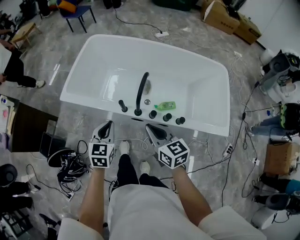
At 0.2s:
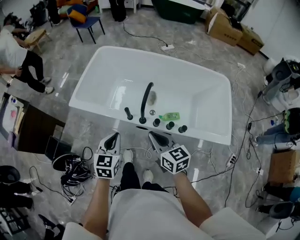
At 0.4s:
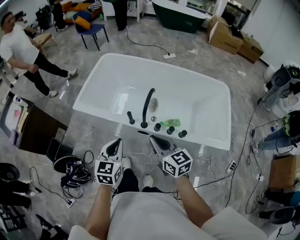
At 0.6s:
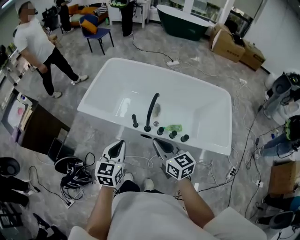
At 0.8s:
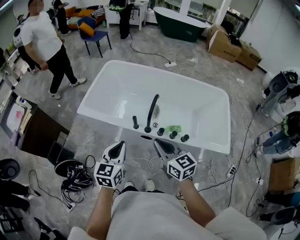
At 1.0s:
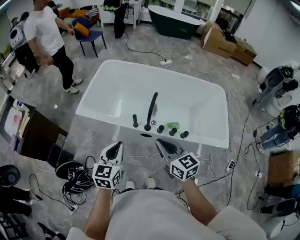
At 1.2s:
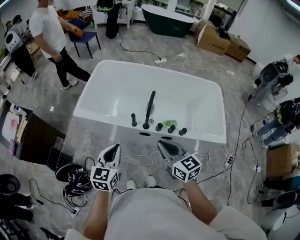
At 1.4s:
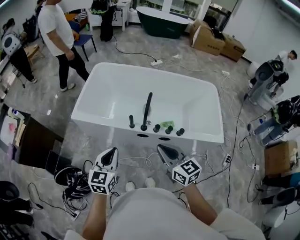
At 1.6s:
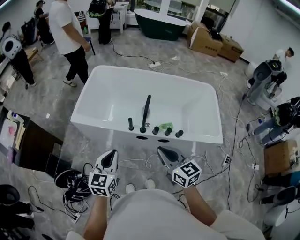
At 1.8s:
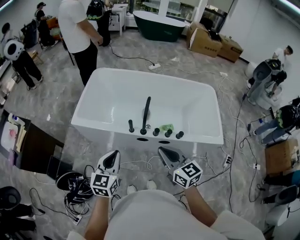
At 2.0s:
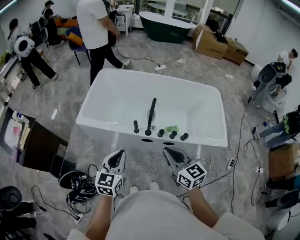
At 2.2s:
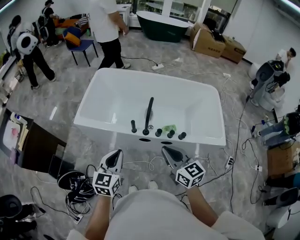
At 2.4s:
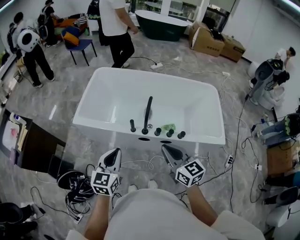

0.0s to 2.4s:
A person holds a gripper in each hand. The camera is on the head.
0.0s to 1.2s: The right gripper heads upward and backward, covering some 10 cm. The left gripper travels upward, backward and to the left by approximately 15 cm.
1.2s to 2.4s: There are only small adjustments of the grippers.

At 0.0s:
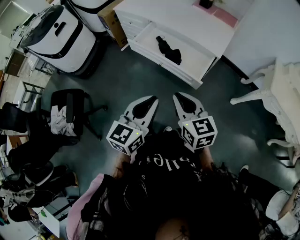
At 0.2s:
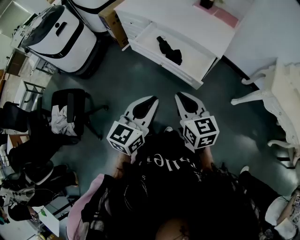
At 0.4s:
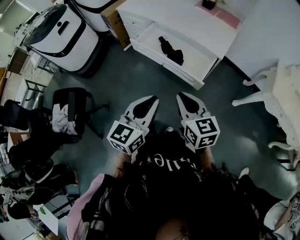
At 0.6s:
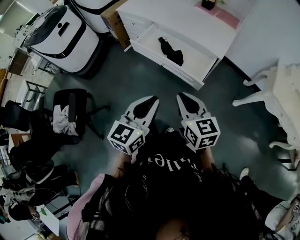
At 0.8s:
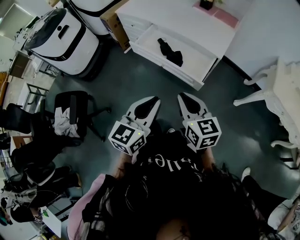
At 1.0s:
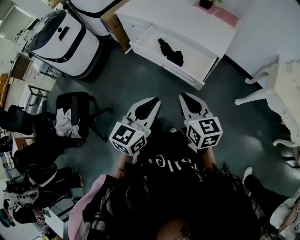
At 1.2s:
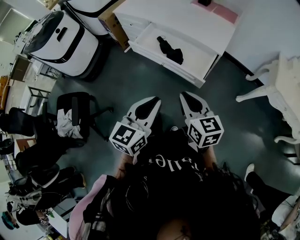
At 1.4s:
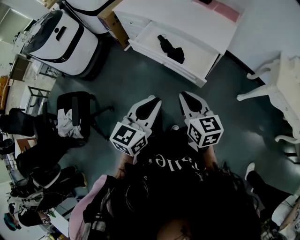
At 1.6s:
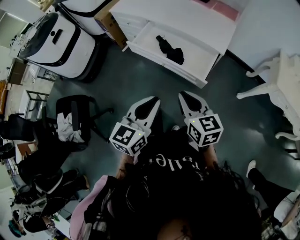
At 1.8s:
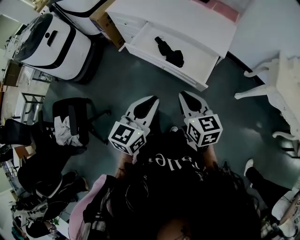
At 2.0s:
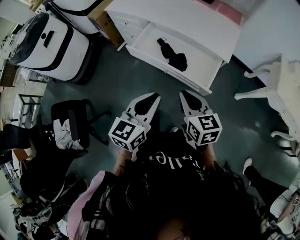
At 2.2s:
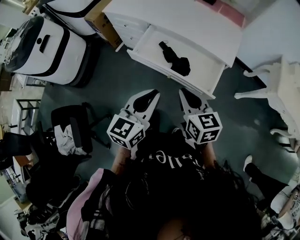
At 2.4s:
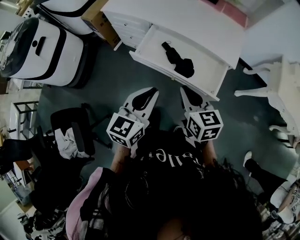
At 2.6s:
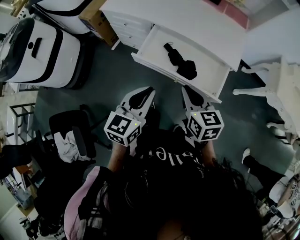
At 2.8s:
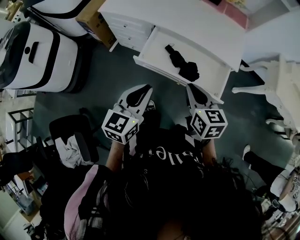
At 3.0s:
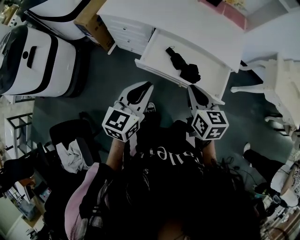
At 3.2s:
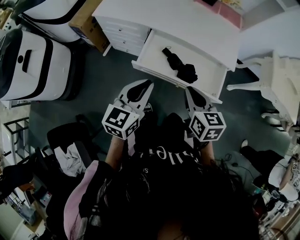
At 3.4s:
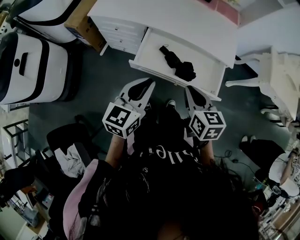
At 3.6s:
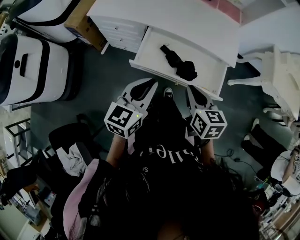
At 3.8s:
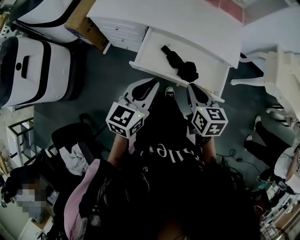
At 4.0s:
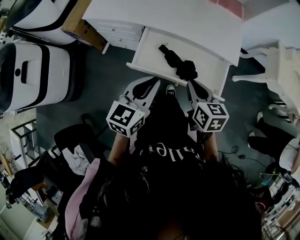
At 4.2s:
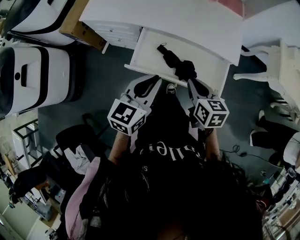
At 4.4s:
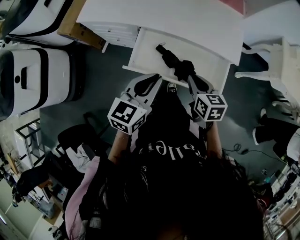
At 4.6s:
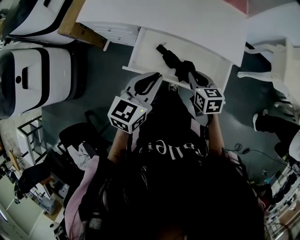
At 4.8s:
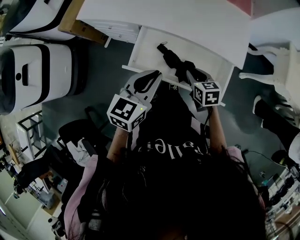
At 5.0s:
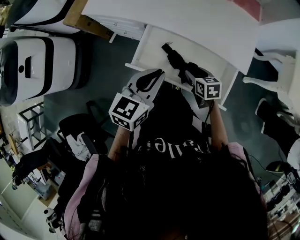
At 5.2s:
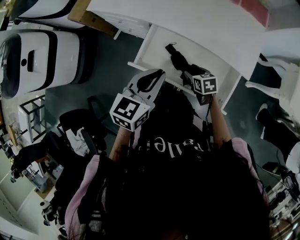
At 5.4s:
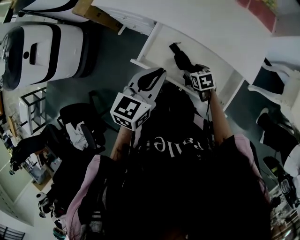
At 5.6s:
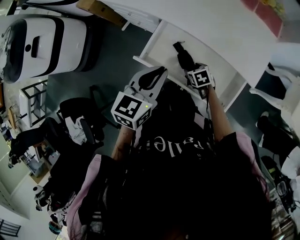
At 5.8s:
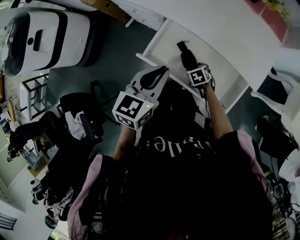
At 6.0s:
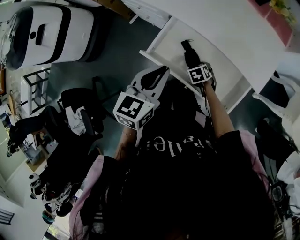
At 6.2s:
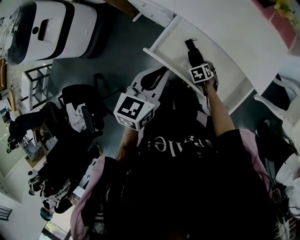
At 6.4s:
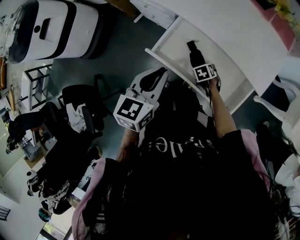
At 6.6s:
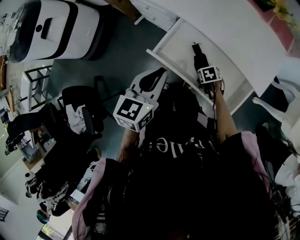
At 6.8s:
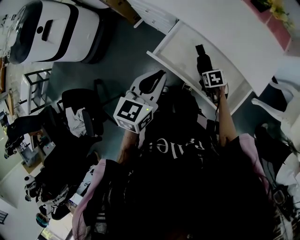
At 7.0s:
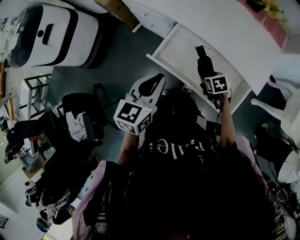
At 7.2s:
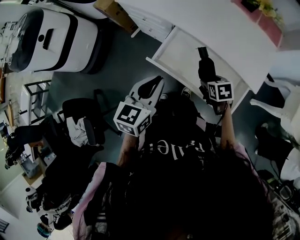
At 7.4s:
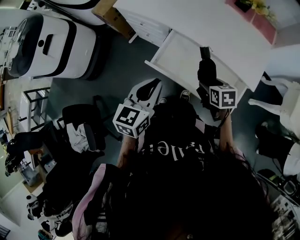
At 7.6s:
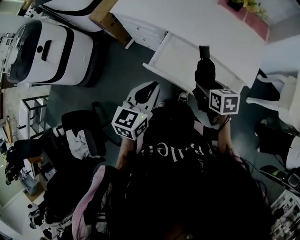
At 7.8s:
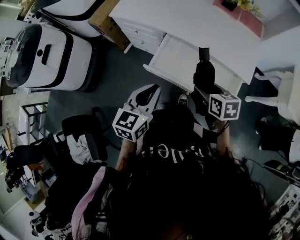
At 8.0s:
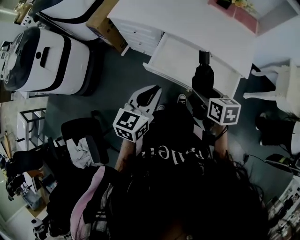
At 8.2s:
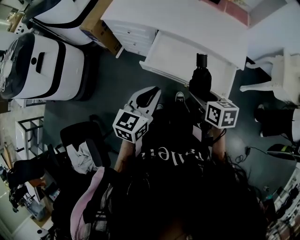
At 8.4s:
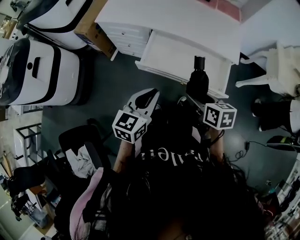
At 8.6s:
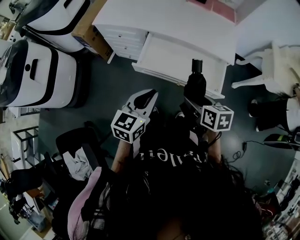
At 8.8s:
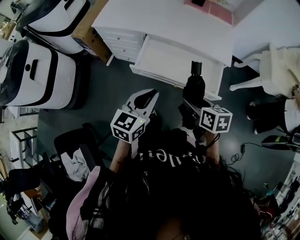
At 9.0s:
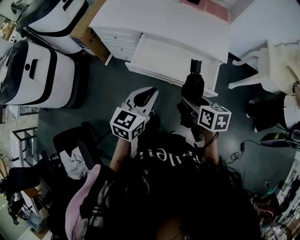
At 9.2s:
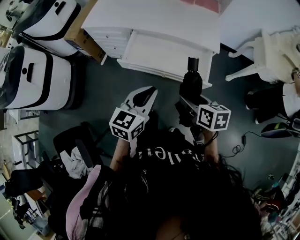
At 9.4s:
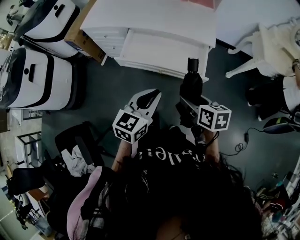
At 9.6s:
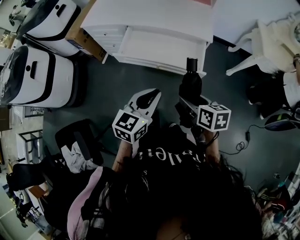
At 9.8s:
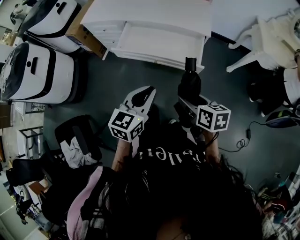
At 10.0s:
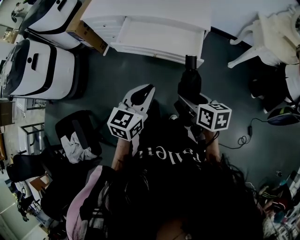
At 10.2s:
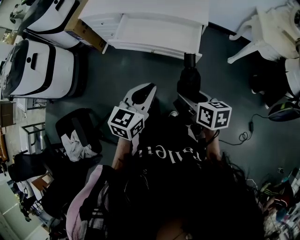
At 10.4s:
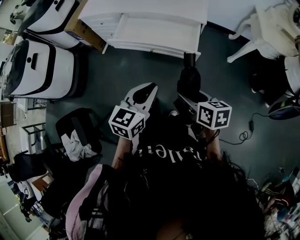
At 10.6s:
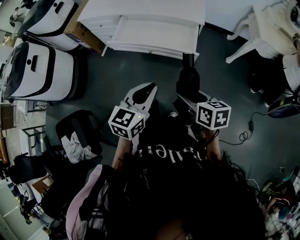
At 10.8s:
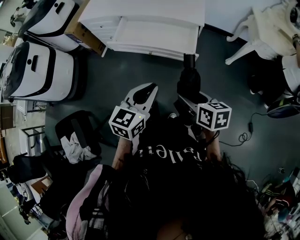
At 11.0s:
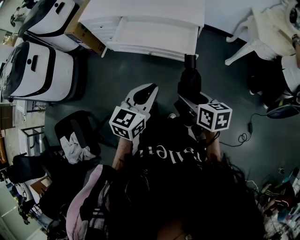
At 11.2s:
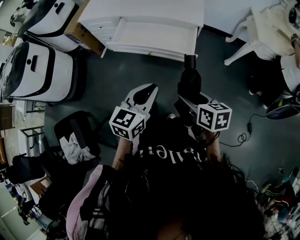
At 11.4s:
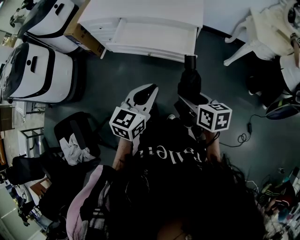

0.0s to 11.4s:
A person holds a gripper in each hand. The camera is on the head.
0.0s to 1.4s: The grippers stay close to where they were, moving slightly.
1.4s to 2.8s: Both grippers travel together forward and to the left, approximately 35 cm. The right gripper swivels some 20 degrees.
2.8s to 4.2s: The left gripper heads forward, covering approximately 10 cm. The right gripper shifts about 10 cm forward and downward.
4.2s to 5.6s: The right gripper is displaced downward by roughly 25 cm, rotates roughly 50 degrees, and opens. The left gripper changes place by approximately 10 cm.
5.6s to 7.2s: The right gripper goes approximately 10 cm upward, while the left gripper changes place by about 10 cm.
7.2s to 8.6s: The left gripper heads backward, covering about 15 cm, and turns by about 20 degrees; the right gripper travels backward and upward by approximately 25 cm, and swivels approximately 30 degrees.
8.6s to 10.0s: Both grippers travel together backward and to the right, roughly 25 cm.
10.0s to 11.4s: The right gripper shifts by about 5 cm; the left gripper moves about 5 cm.

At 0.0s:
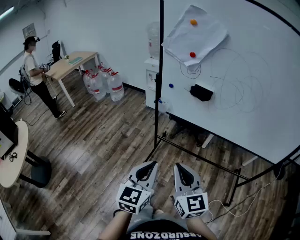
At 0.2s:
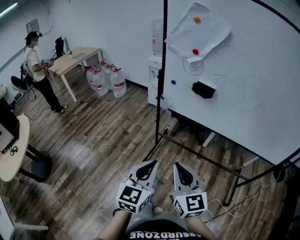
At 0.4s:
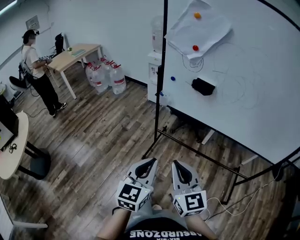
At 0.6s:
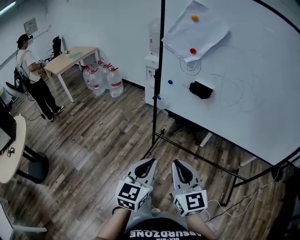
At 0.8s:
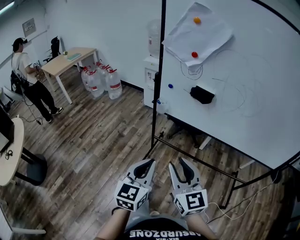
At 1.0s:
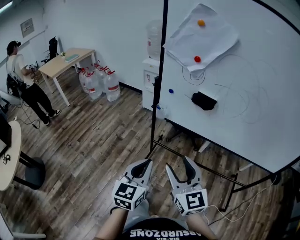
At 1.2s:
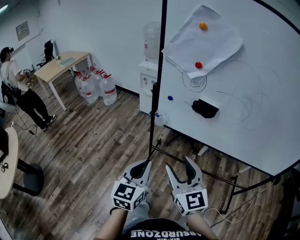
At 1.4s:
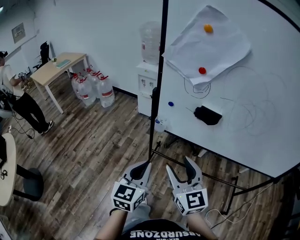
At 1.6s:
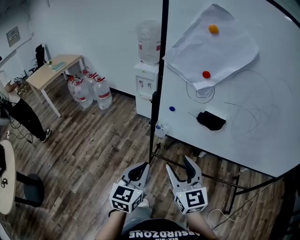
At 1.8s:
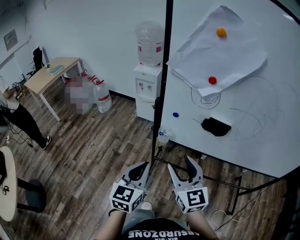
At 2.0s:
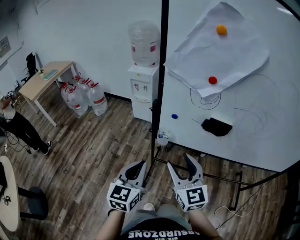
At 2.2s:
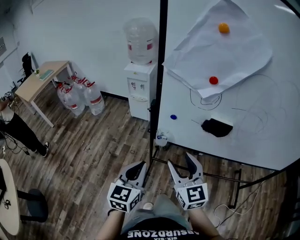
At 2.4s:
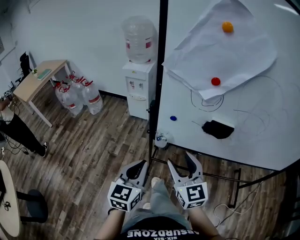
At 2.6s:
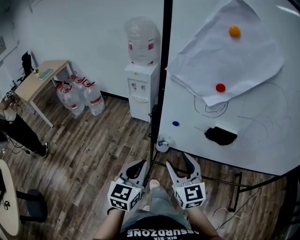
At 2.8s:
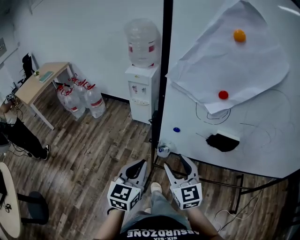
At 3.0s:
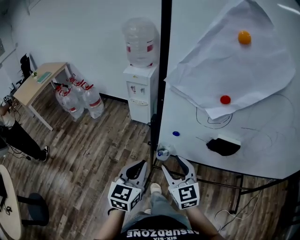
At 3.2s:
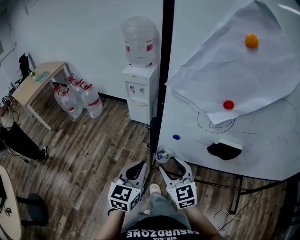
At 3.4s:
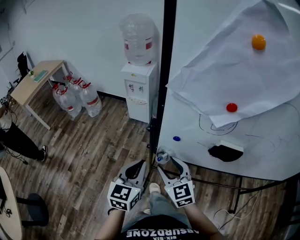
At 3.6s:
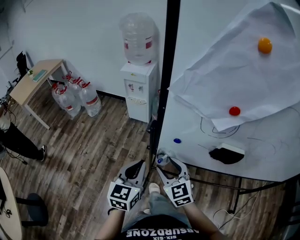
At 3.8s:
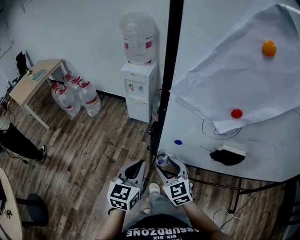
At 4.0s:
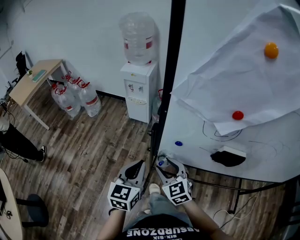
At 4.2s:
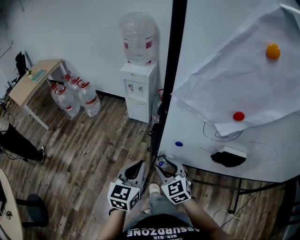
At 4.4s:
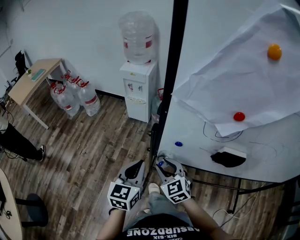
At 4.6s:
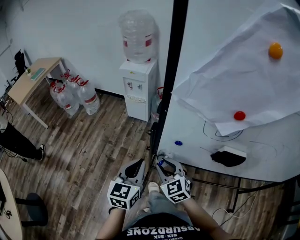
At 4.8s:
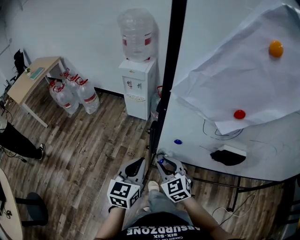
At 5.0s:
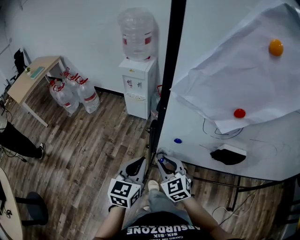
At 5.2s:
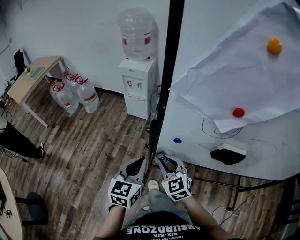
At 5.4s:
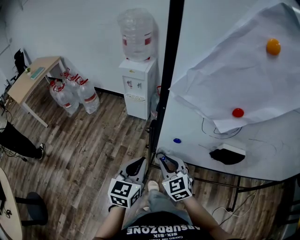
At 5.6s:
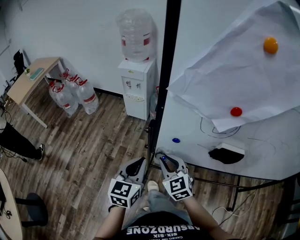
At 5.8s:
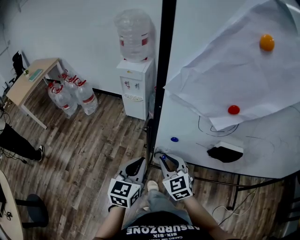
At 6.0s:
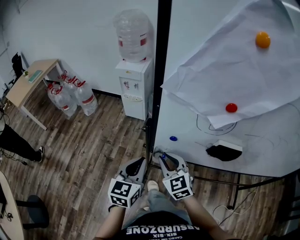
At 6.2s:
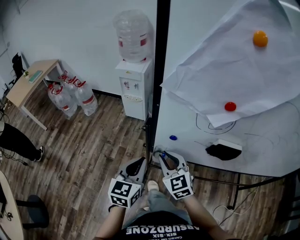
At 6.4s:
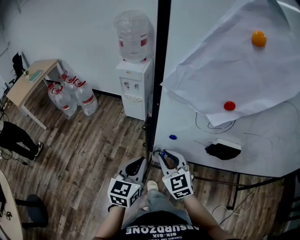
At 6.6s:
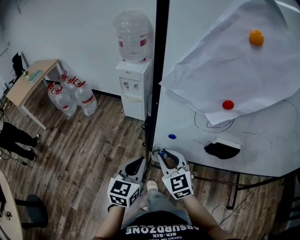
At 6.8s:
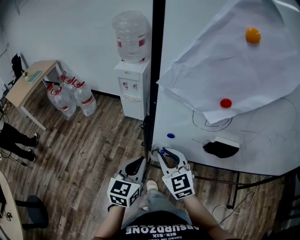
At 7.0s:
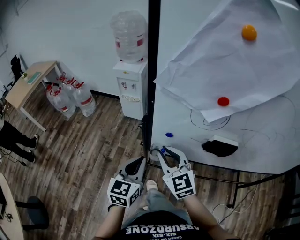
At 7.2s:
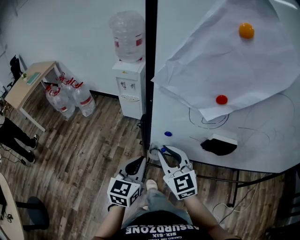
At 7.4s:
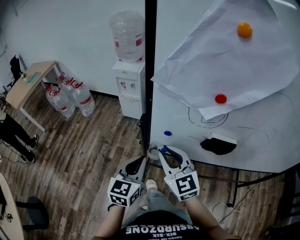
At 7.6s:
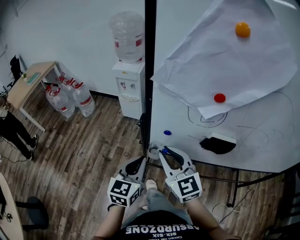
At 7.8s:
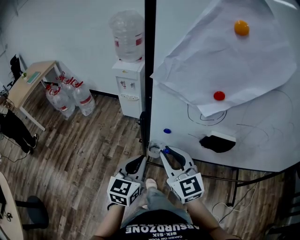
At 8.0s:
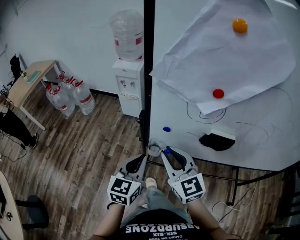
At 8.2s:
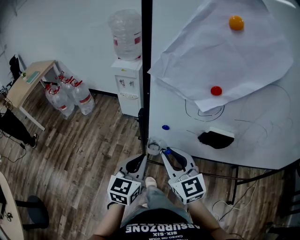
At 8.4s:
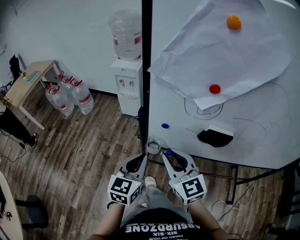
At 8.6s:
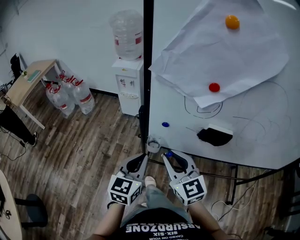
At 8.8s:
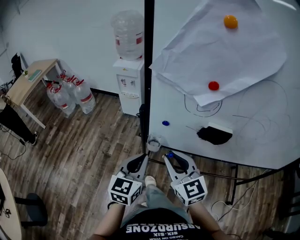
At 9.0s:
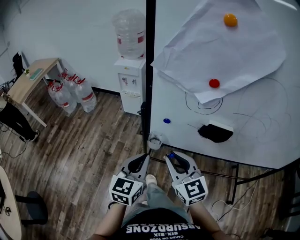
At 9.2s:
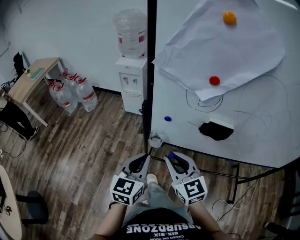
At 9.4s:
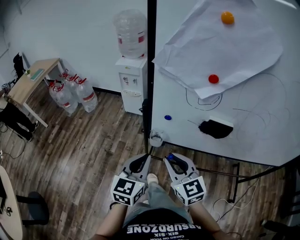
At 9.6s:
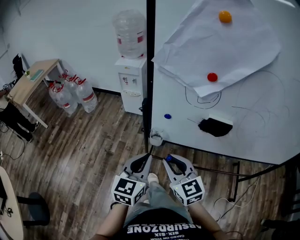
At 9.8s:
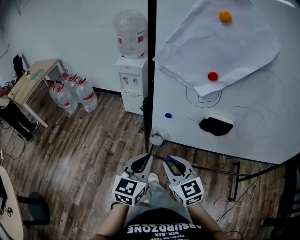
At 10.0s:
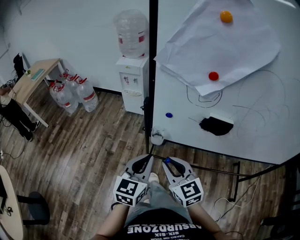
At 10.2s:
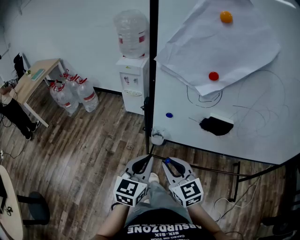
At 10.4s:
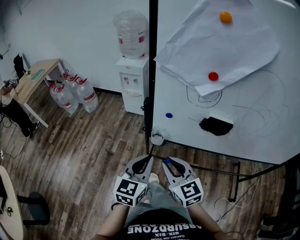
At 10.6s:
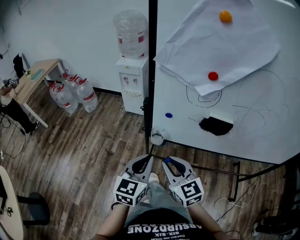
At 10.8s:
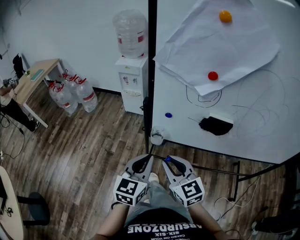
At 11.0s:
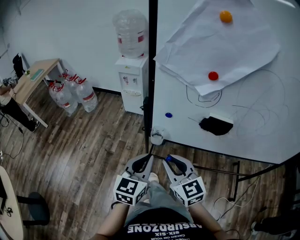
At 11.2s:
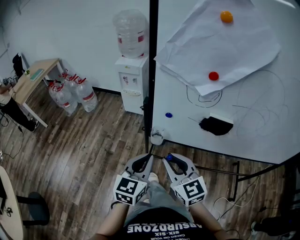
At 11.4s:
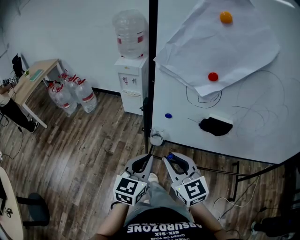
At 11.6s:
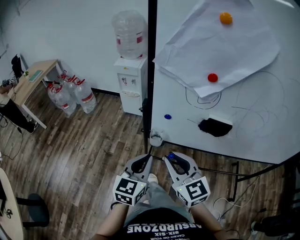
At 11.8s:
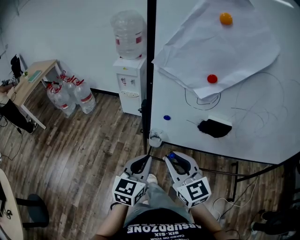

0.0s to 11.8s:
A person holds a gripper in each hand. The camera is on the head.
0.0s to 1.4s: Both grippers move forward, roughly 20 cm. The right gripper opens its fingers.
1.4s to 3.0s: Both grippers move forward, about 20 cm.
3.0s to 4.4s: The left gripper moves forward, approximately 5 cm, while the right gripper travels downward and forward by approximately 10 cm.
4.4s to 6.0s: The grippers move only a little.
6.0s to 7.4s: The right gripper heads upward, covering approximately 10 cm.
7.4s to 8.8s: The right gripper moves backward, roughly 5 cm.
8.8s to 10.4s: The right gripper shifts by about 5 cm.
10.4s to 11.8s: The right gripper goes roughly 5 cm upward.
